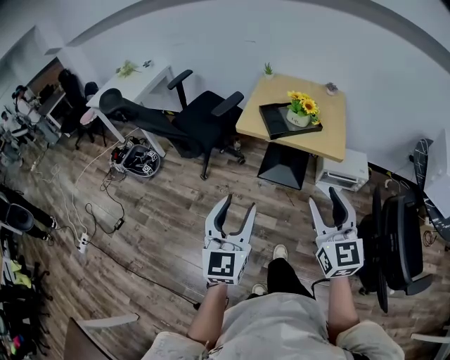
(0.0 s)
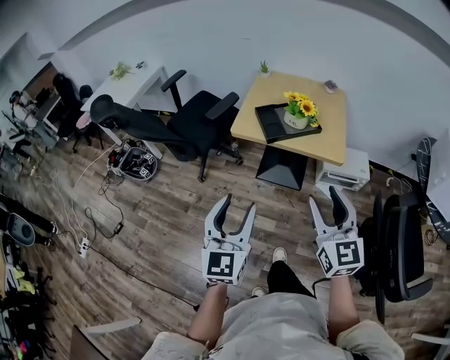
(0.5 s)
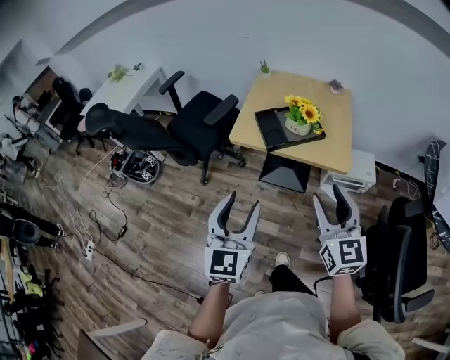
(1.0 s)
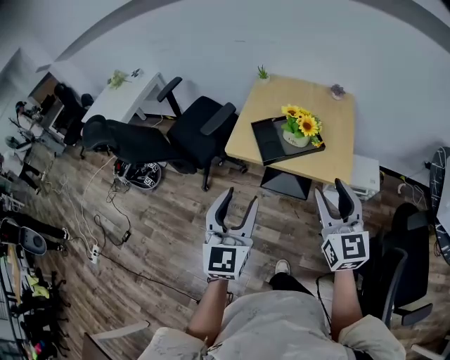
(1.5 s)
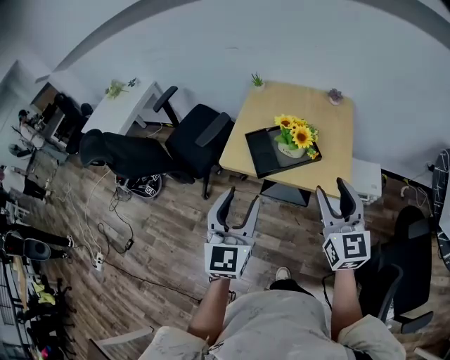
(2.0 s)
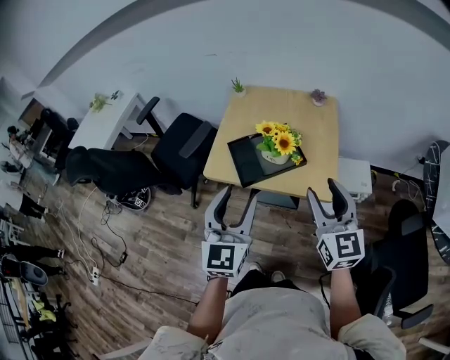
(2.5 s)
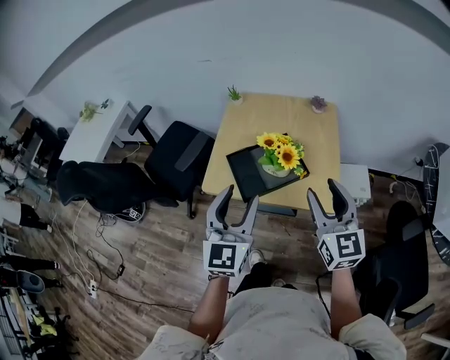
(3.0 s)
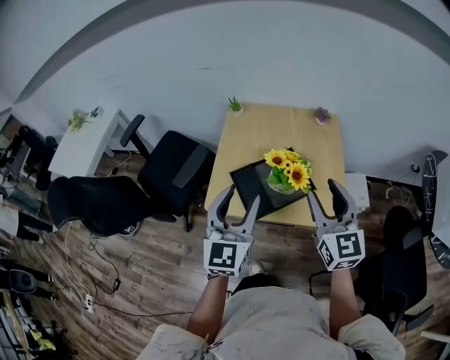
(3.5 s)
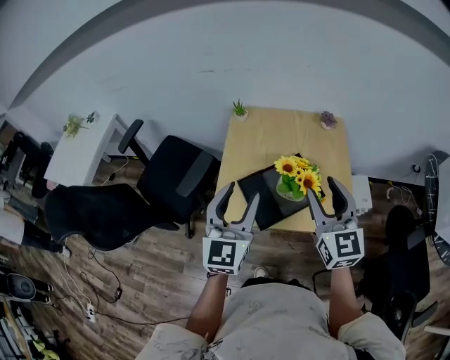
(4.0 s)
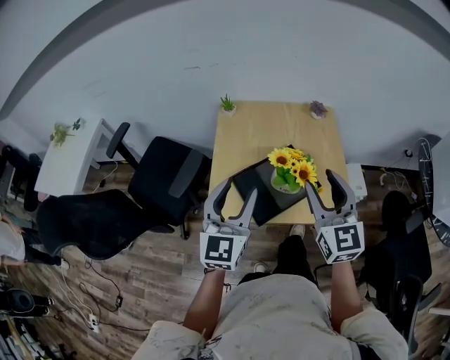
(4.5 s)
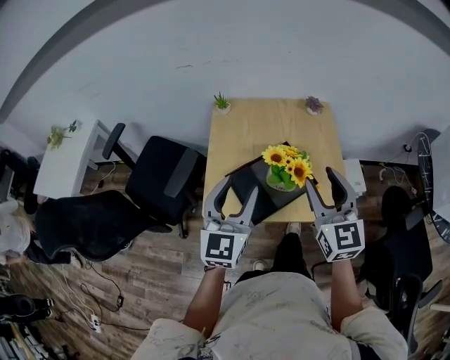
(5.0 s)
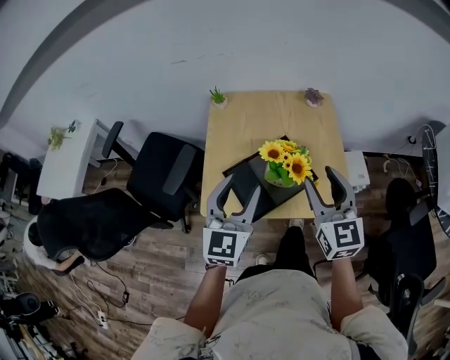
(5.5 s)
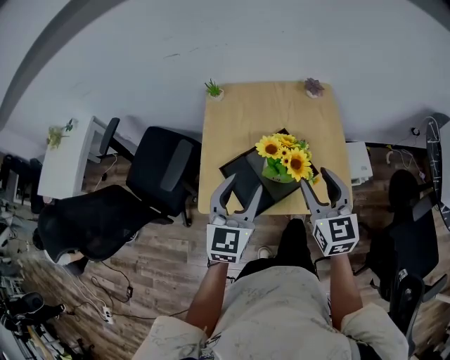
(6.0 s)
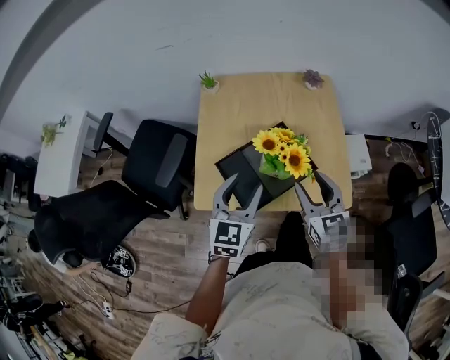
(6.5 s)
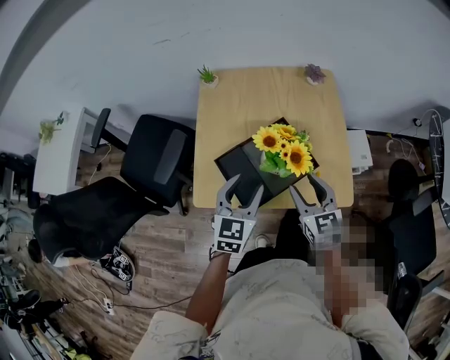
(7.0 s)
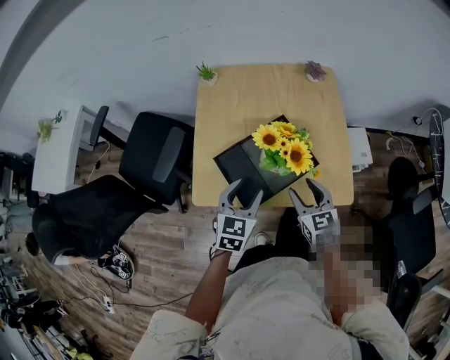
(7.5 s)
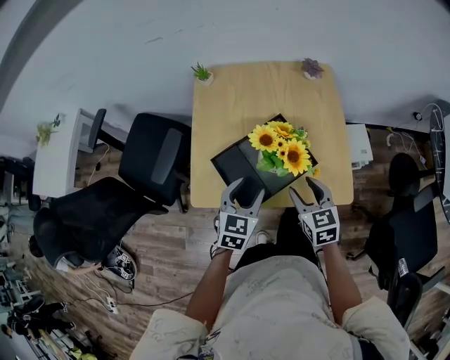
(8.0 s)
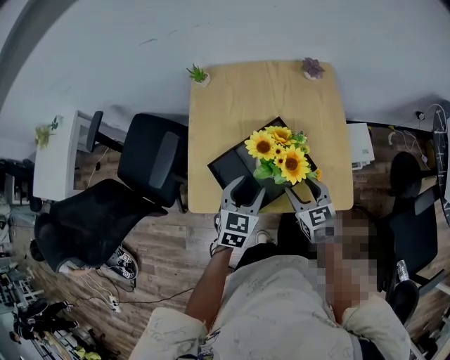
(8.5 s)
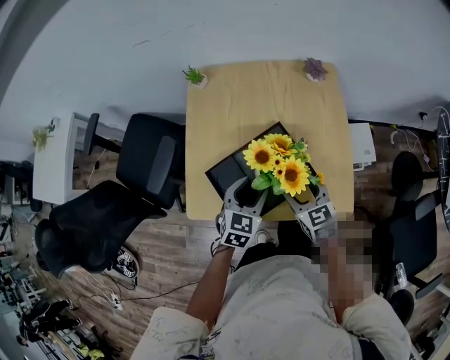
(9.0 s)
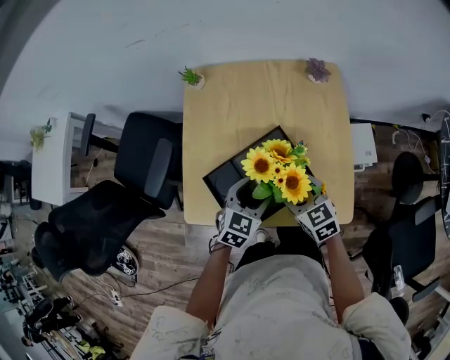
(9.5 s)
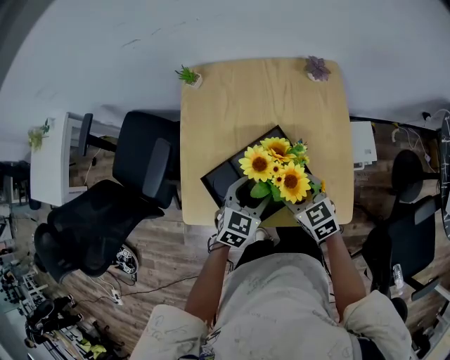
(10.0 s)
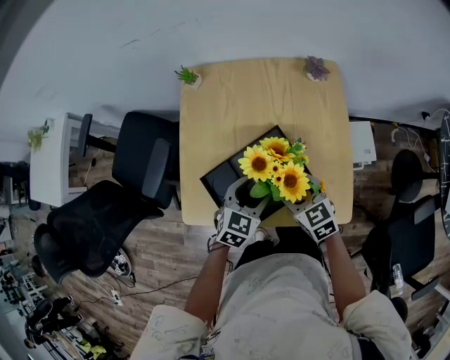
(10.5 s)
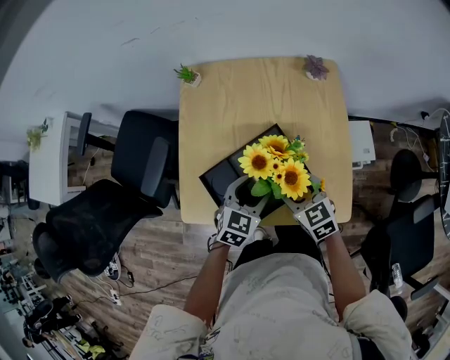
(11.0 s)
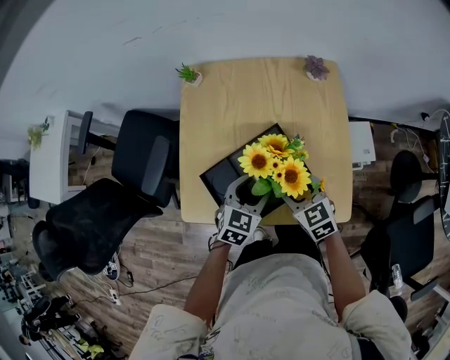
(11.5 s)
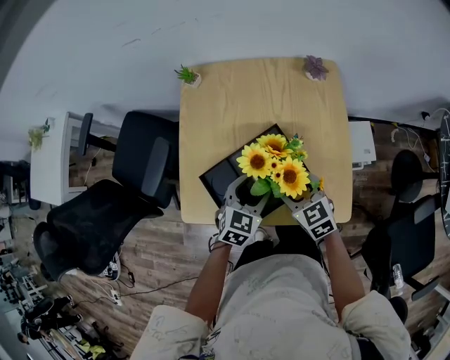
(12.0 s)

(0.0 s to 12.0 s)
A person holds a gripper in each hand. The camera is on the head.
0.0 s - 2.0 s: Both grippers move forward and to the right, roughly 30 cm.
2.0 s - 4.0 s: The left gripper heads forward, covering approximately 25 cm, while the right gripper goes roughly 20 cm forward and to the left.
4.0 s - 6.0 s: The right gripper heads downward, covering approximately 10 cm, while the left gripper is displaced downward and to the right by approximately 10 cm.
6.0 s - 8.0 s: The two grippers go about 15 cm downward. The right gripper rotates some 20 degrees; the left gripper swivels approximately 20 degrees.
8.0 s - 10.0 s: Both grippers move forward, about 5 cm.
10.0 s - 12.0 s: Both grippers stay put.

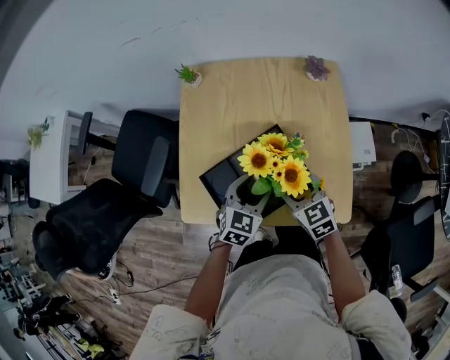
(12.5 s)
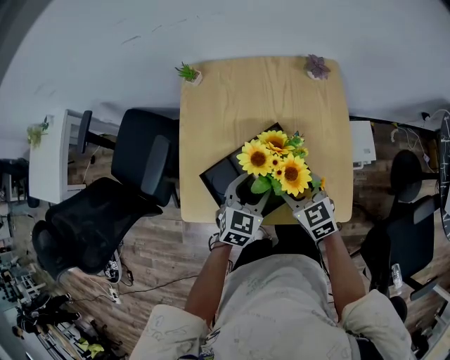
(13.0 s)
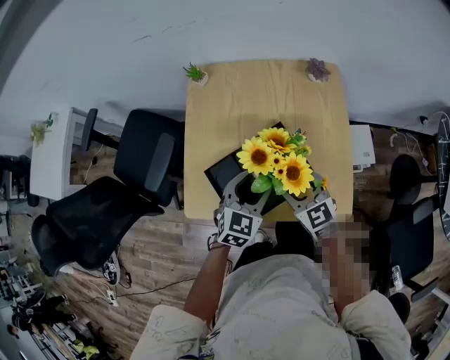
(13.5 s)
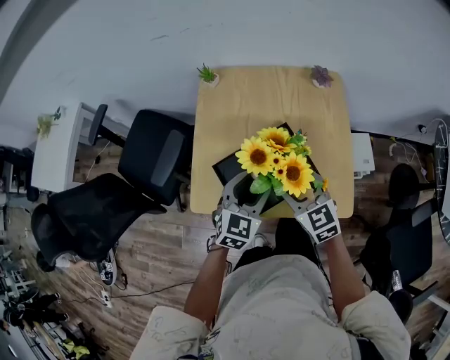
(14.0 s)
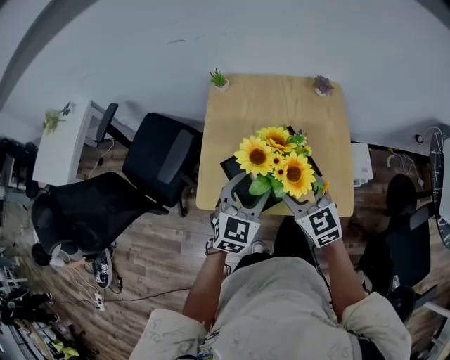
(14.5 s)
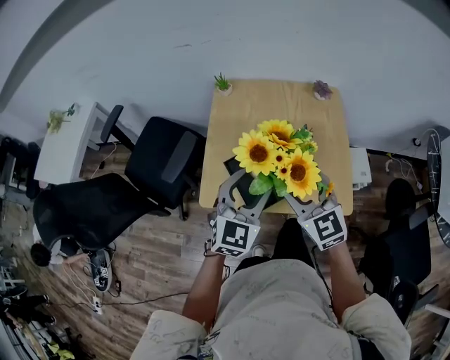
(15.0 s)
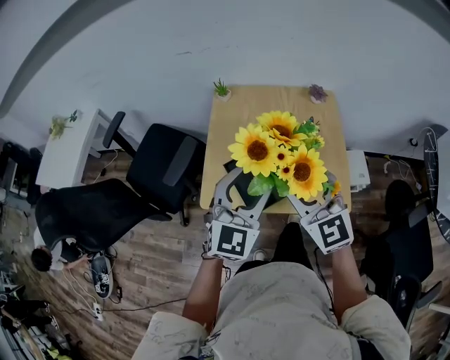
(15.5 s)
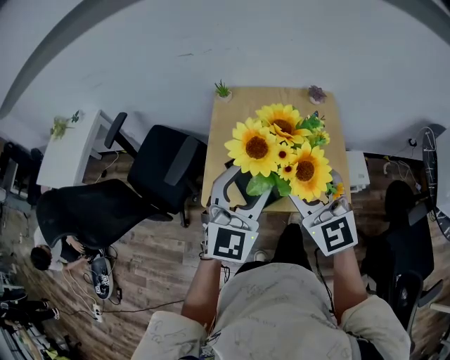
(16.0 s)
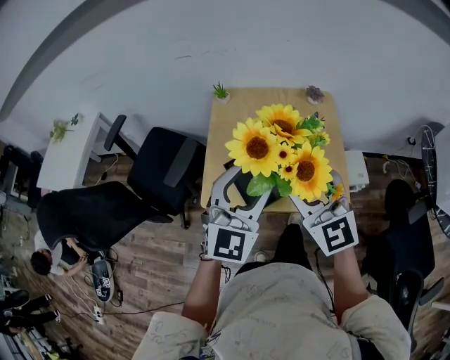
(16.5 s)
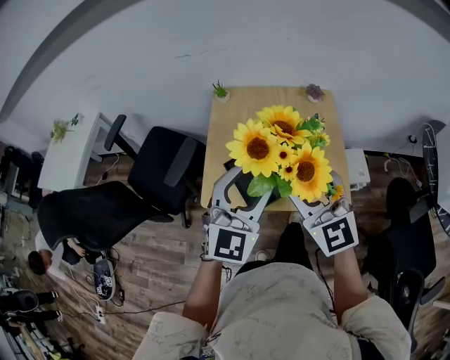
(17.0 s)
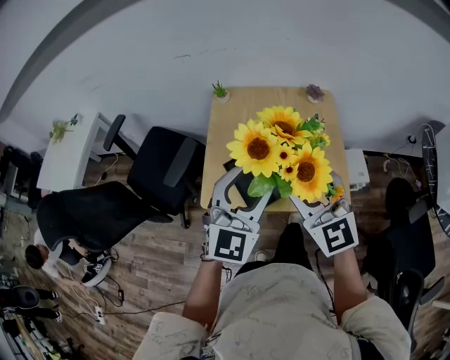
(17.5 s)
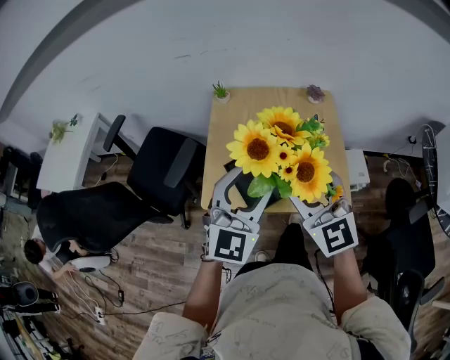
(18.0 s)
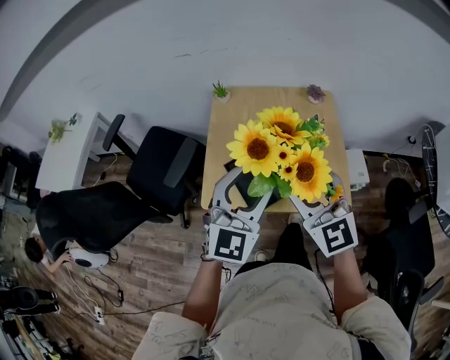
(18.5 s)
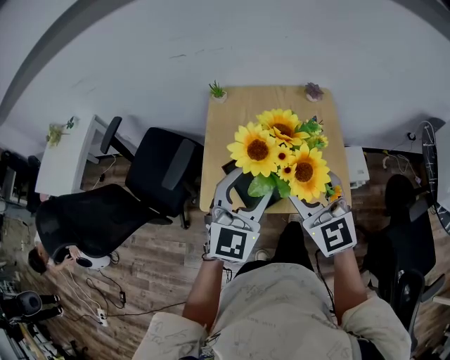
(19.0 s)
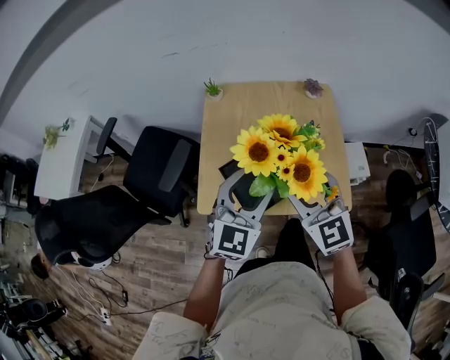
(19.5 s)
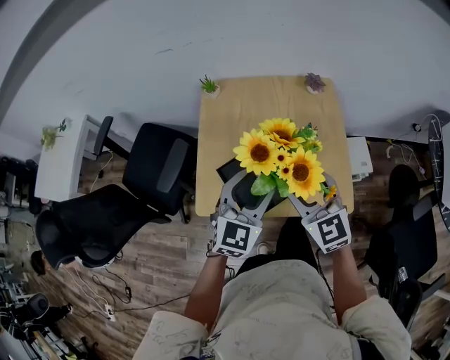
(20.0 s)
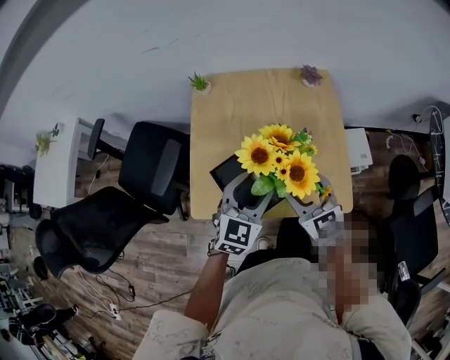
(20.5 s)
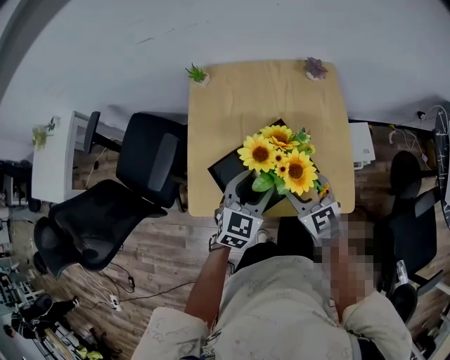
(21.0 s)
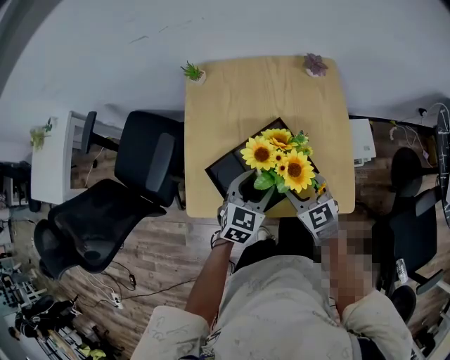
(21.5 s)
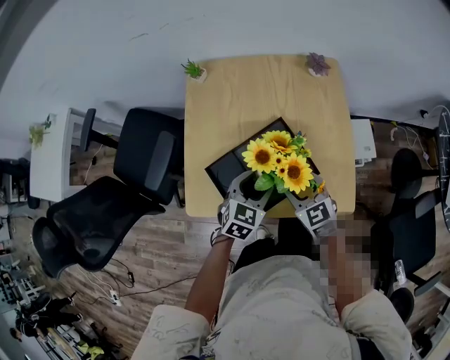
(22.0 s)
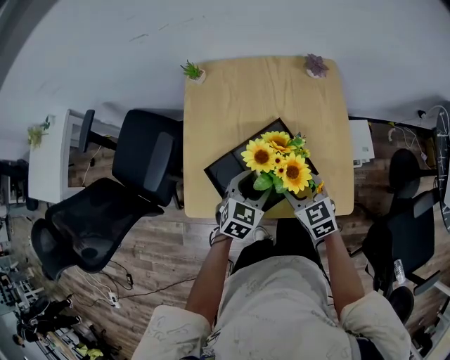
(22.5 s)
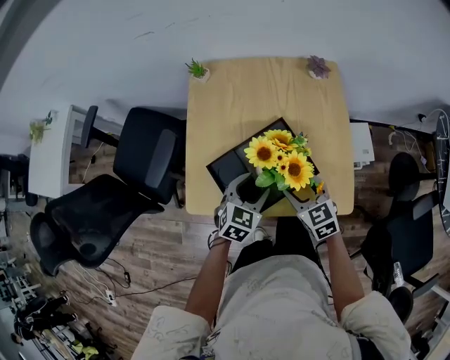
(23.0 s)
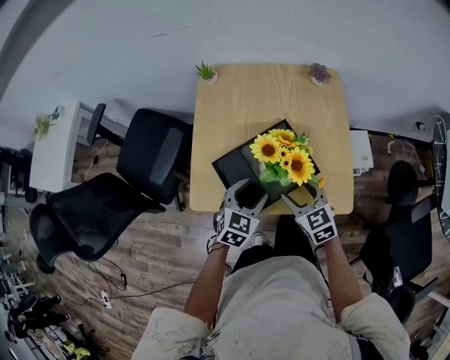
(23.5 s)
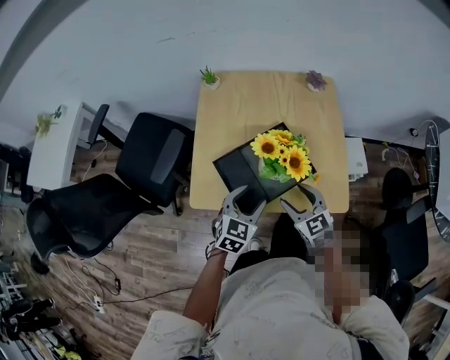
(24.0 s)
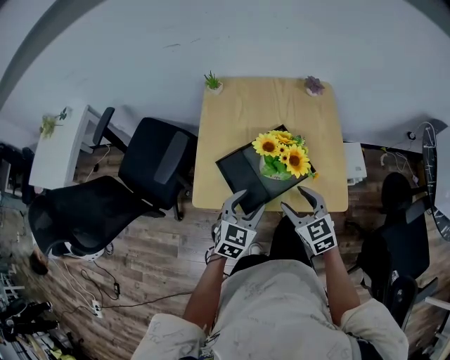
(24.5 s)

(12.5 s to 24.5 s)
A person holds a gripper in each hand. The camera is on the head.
12.5 s - 14.5 s: The two grippers go some 15 cm upward, to the left and backward.
14.5 s - 16.5 s: The right gripper travels upward and backward by approximately 15 cm, and rotates approximately 20 degrees. Meanwhile the left gripper goes roughly 15 cm upward, and rotates some 20 degrees.
16.5 s - 18.5 s: Neither gripper changes place.
18.5 s - 20.5 s: The two grippers go some 15 cm downward and forward. The right gripper turns by roughly 20 degrees, while the left gripper swivels about 20 degrees.
20.5 s - 22.5 s: Both grippers move downward, roughly 10 cm.
22.5 s - 24.5 s: The grippers both shift backward by roughly 10 cm.

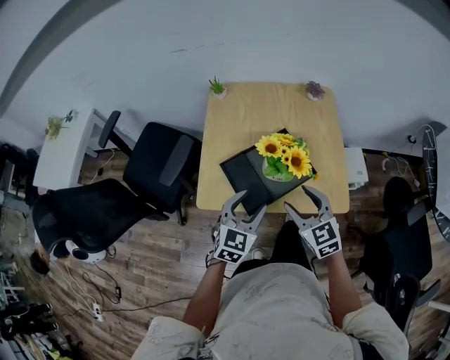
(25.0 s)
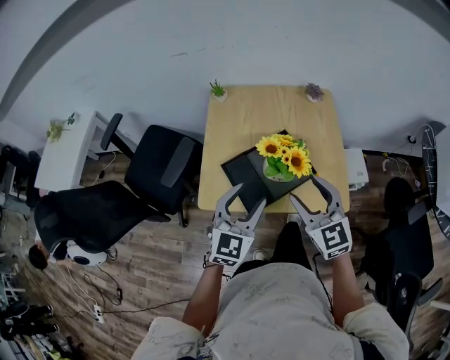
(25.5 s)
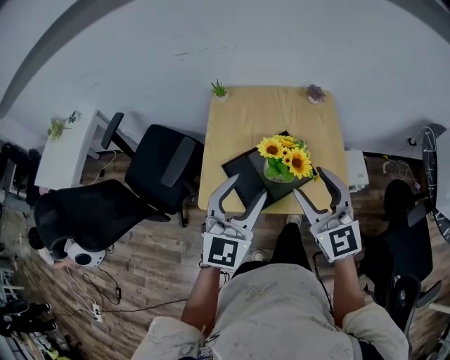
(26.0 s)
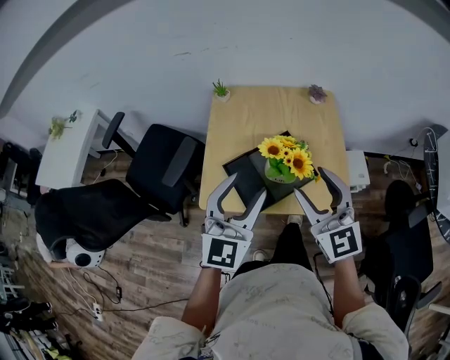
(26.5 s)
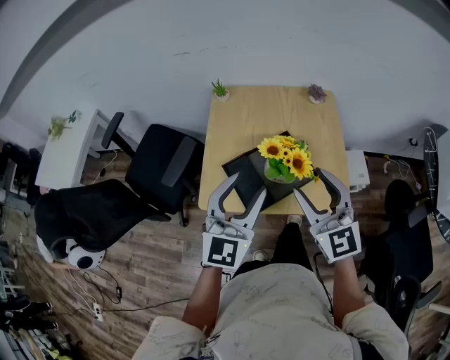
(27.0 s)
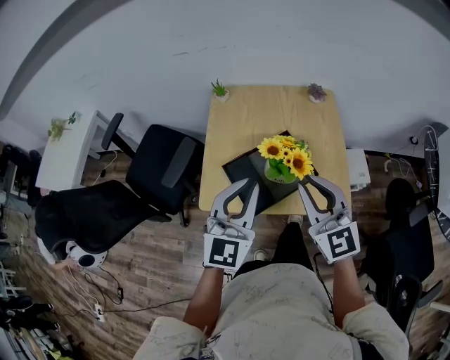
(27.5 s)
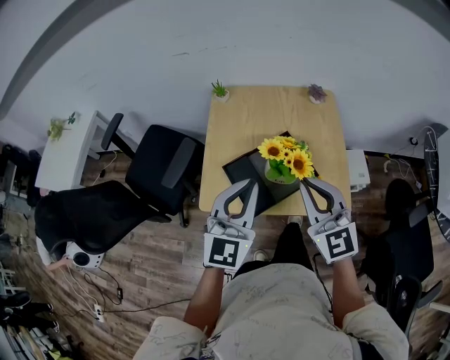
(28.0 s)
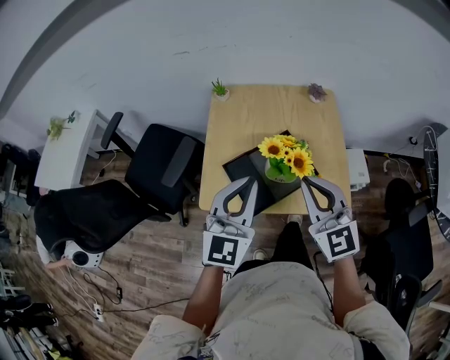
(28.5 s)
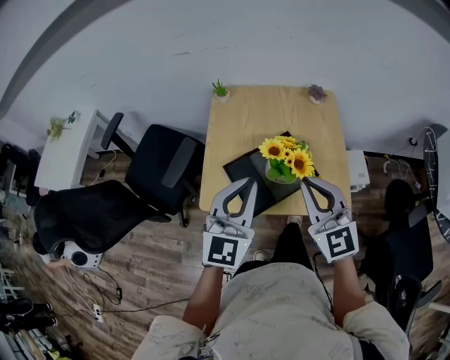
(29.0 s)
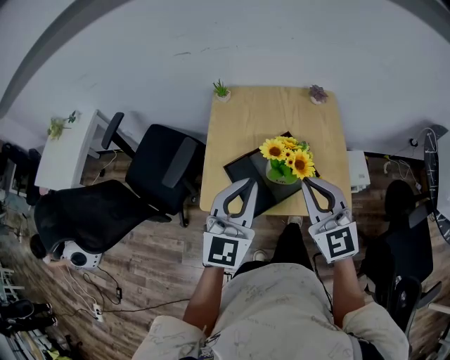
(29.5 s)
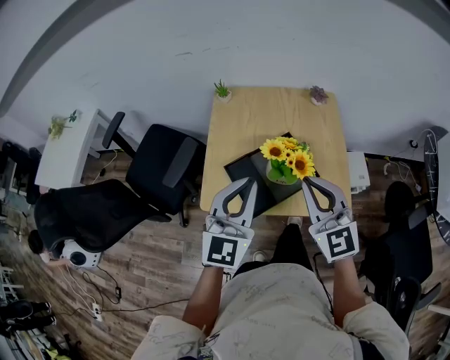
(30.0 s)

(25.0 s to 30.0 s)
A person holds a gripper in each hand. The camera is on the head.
25.0 s - 27.5 s: Both grippers move upward, about 15 cm. The left gripper rotates about 20 degrees, and closes its fingers, while the right gripper rotates approximately 20 degrees, and closes.
27.5 s - 30.0 s: Both grippers stay about where they are.
